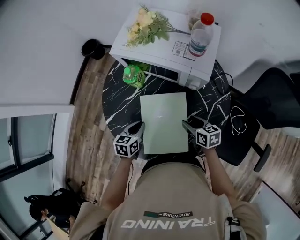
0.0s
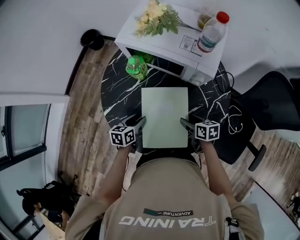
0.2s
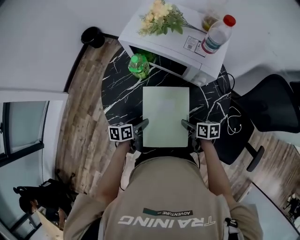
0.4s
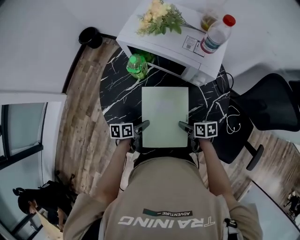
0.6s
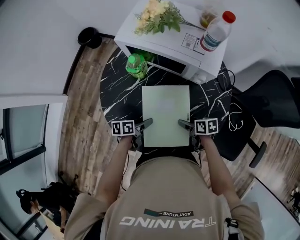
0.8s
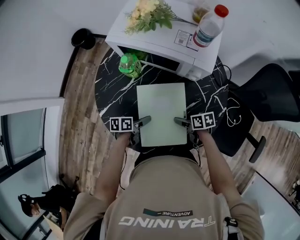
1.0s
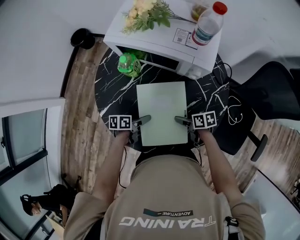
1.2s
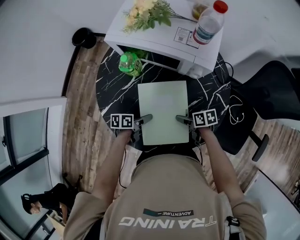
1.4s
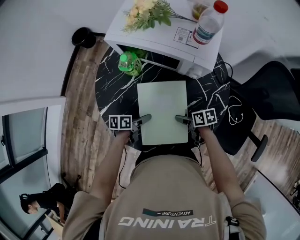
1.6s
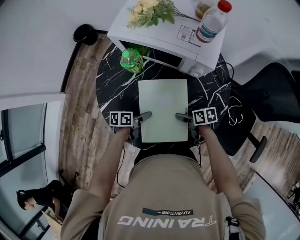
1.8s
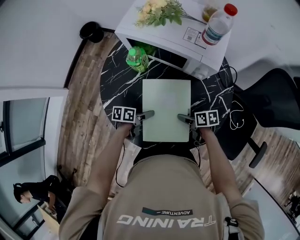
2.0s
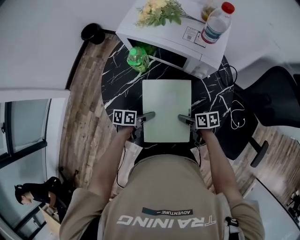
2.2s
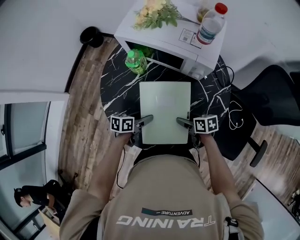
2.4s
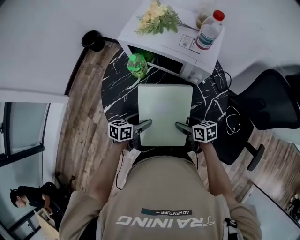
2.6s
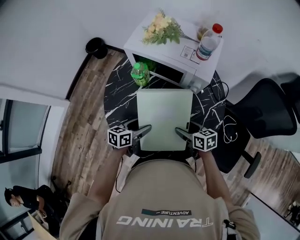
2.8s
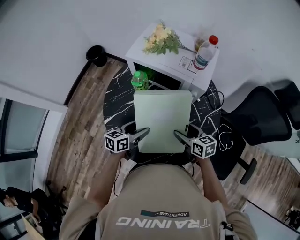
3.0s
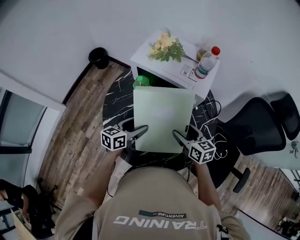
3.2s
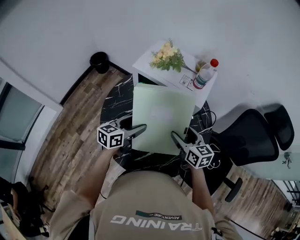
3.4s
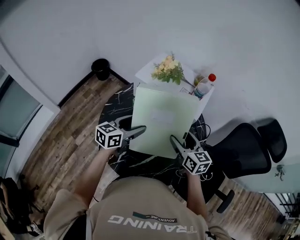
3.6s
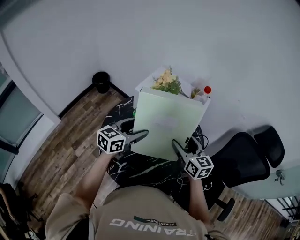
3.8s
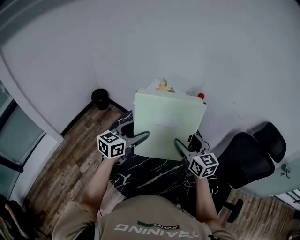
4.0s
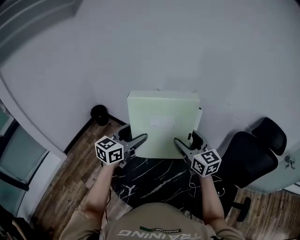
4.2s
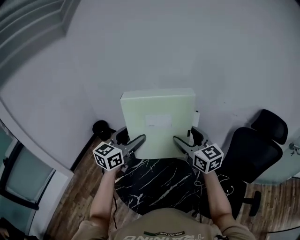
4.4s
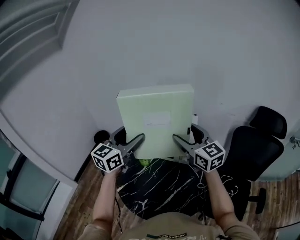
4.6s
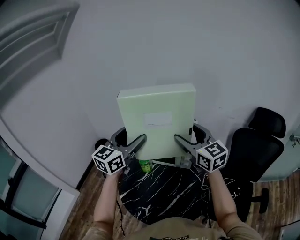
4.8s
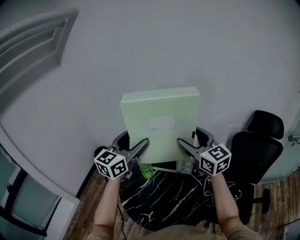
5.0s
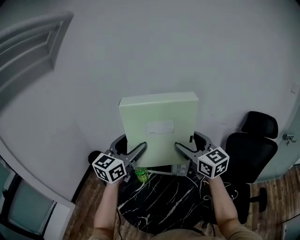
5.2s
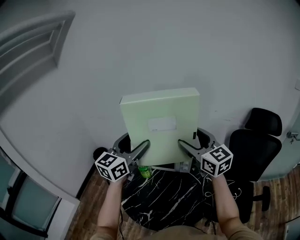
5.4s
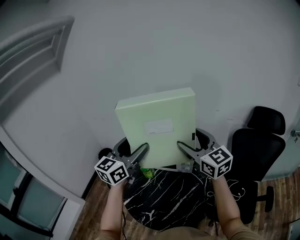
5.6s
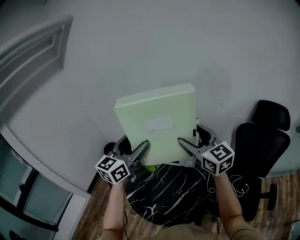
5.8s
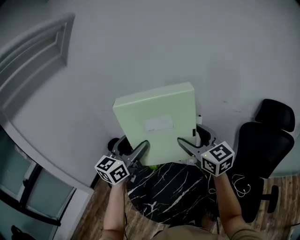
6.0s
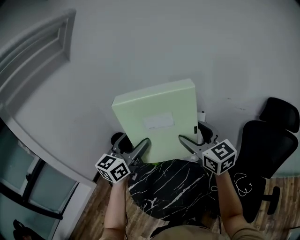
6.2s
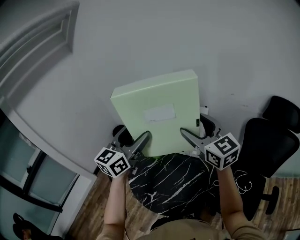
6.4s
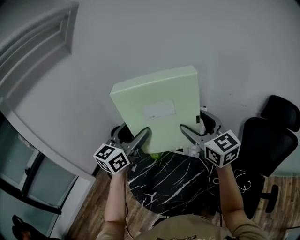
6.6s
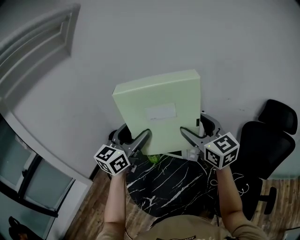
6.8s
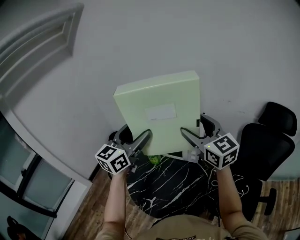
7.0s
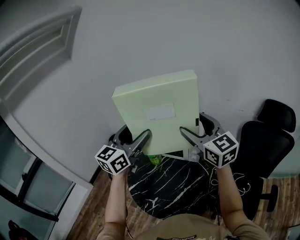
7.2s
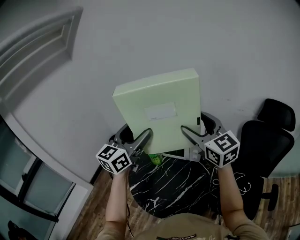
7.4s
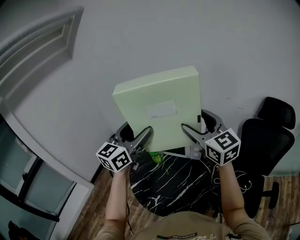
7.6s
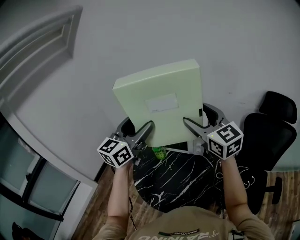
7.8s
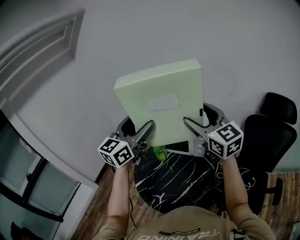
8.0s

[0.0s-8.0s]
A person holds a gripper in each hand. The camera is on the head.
0.0s to 1.6s: The two grippers go roughly 10 cm downward. The right gripper turns by about 30 degrees, and opens; the left gripper changes its angle by about 40 degrees, and opens up.
1.6s to 3.2s: Both grippers travel together upward, approximately 20 cm. The left gripper rotates about 40 degrees. The right gripper changes its angle by roughly 50 degrees.
3.2s to 4.8s: Both grippers travel together upward, about 35 cm. The left gripper changes its angle by some 40 degrees; the right gripper turns by about 40 degrees.
4.8s to 6.4s: The grippers move only a little.
6.4s to 8.0s: The grippers stay close to where they were, moving slightly.

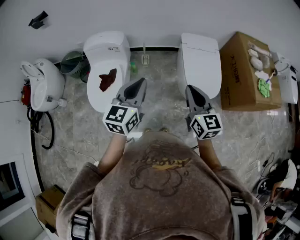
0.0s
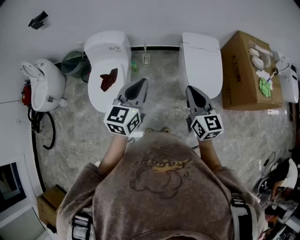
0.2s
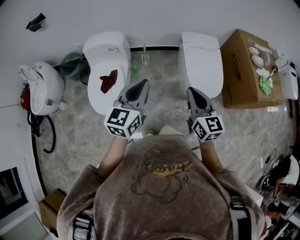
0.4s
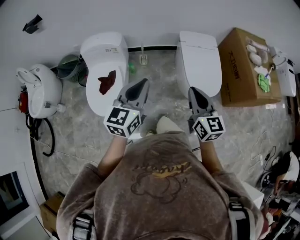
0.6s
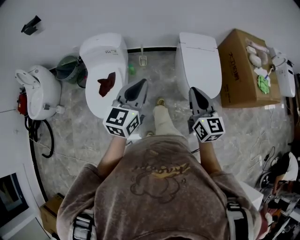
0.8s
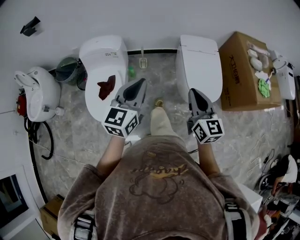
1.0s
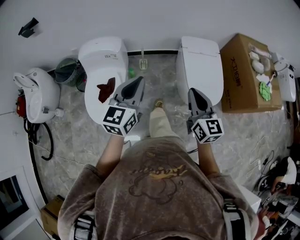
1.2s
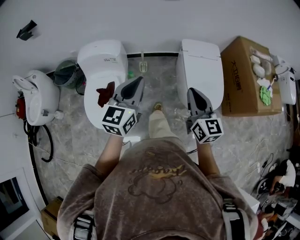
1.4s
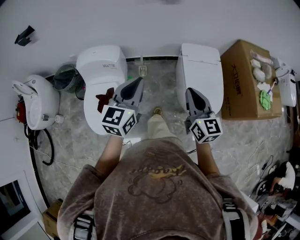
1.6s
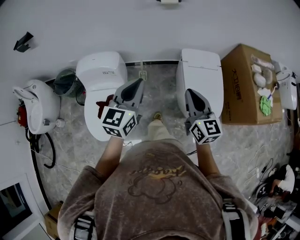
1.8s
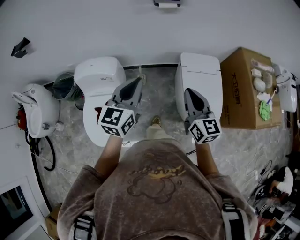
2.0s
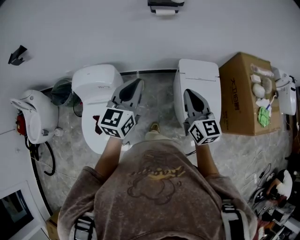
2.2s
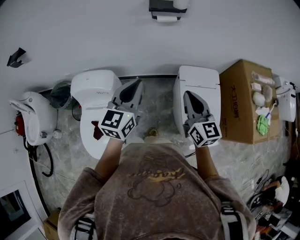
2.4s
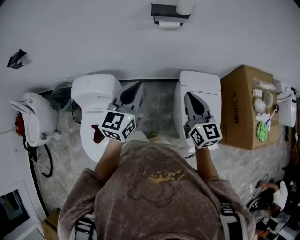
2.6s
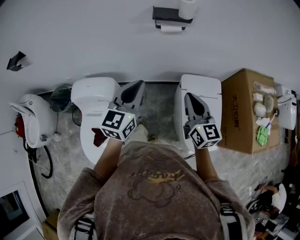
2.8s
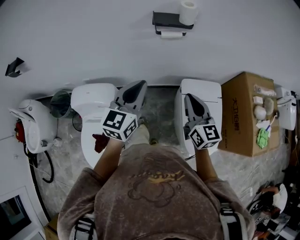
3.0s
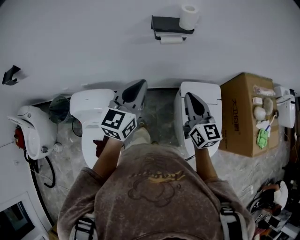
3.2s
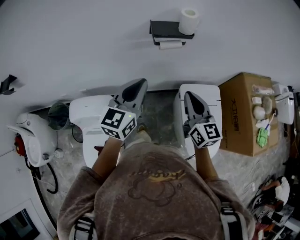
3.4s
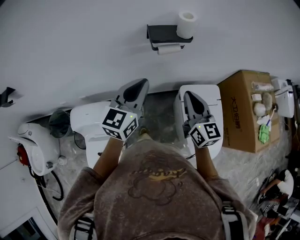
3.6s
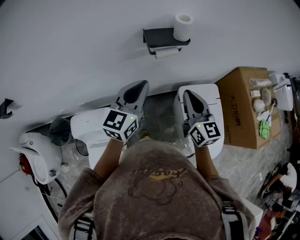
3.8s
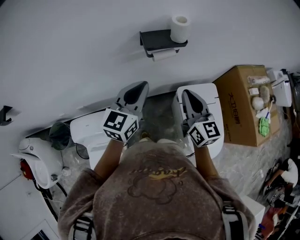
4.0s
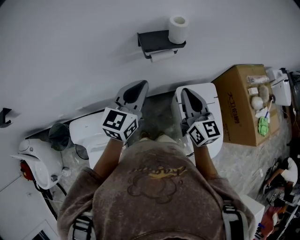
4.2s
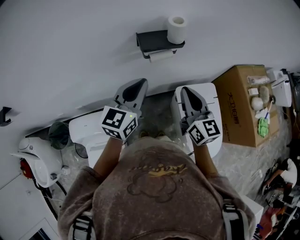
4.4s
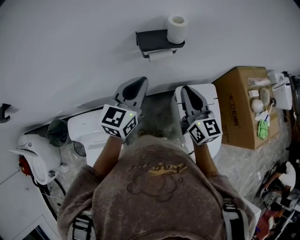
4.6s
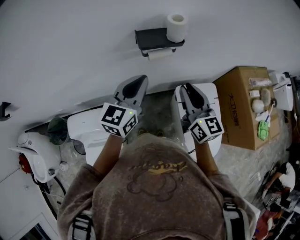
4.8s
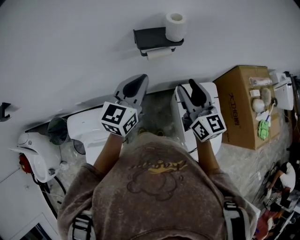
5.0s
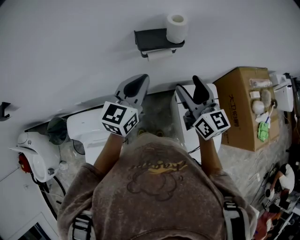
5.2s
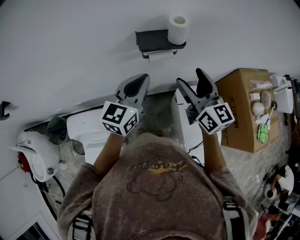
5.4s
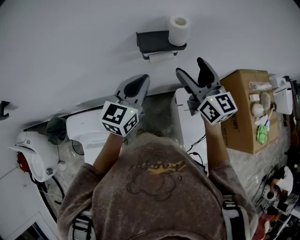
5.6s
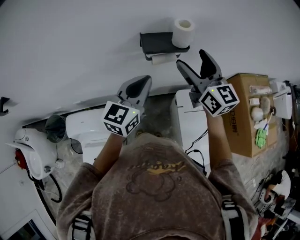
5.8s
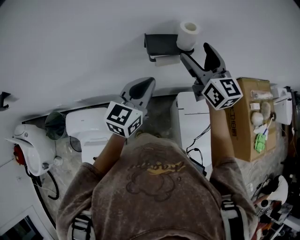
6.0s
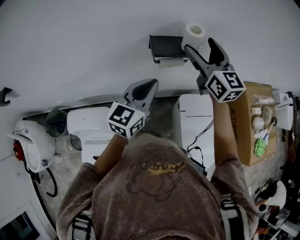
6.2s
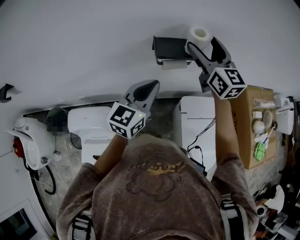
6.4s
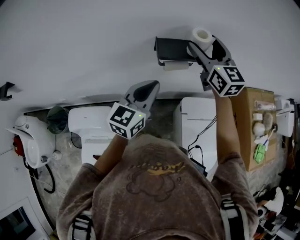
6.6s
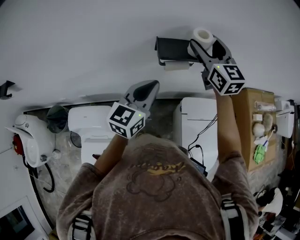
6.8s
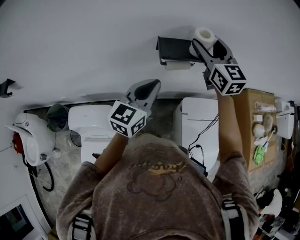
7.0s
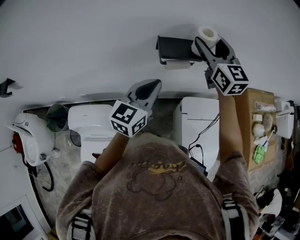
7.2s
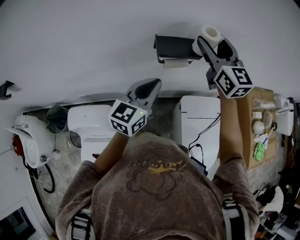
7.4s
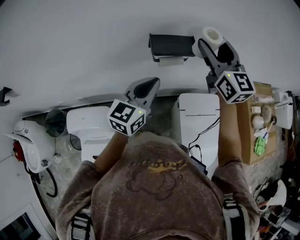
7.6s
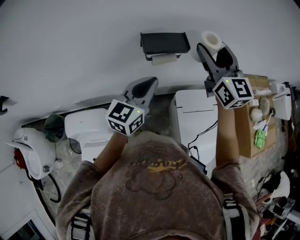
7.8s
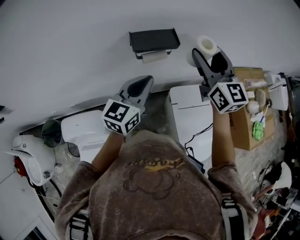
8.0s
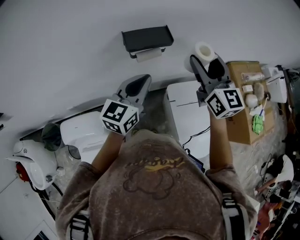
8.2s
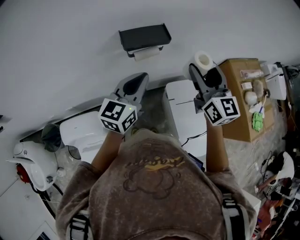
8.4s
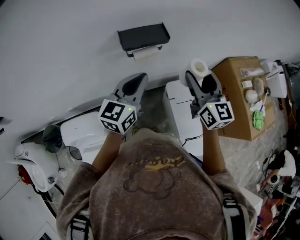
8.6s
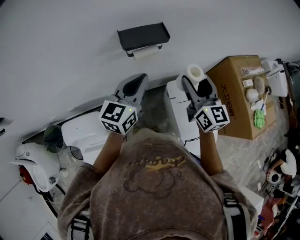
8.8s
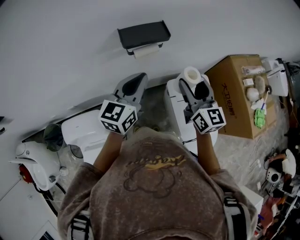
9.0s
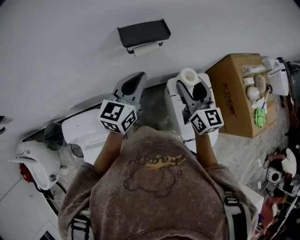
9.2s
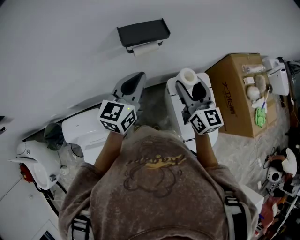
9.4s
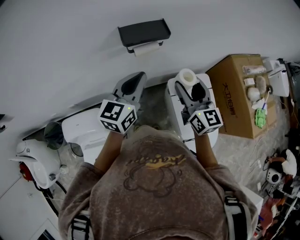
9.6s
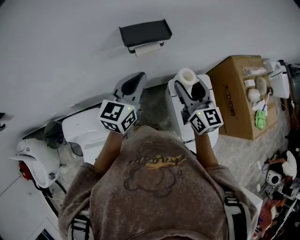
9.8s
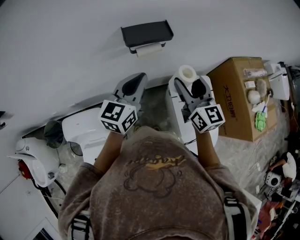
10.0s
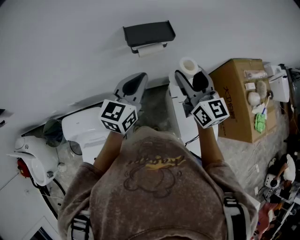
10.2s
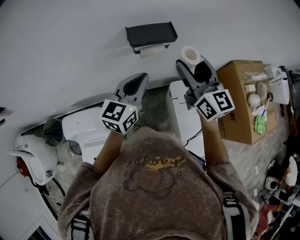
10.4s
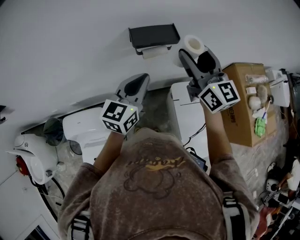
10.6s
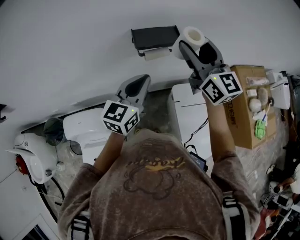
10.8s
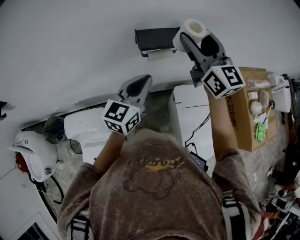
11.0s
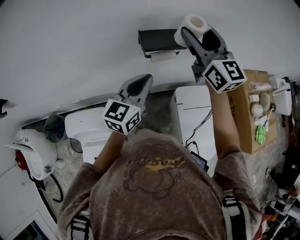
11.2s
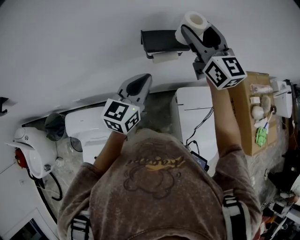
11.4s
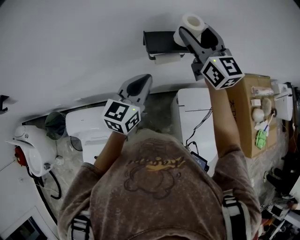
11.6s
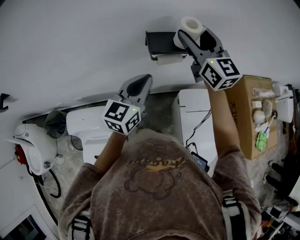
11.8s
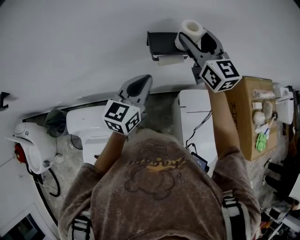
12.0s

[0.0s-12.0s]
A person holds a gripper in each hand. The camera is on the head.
0.0s to 1.6s: Both grippers travel together forward, some 15 cm.
1.6s to 3.0s: The grippers both shift forward by approximately 30 cm.
3.0s to 4.4s: Both grippers move forward, approximately 15 cm.
4.4s to 6.0s: The right gripper shifts about 15 cm forward and upward, and opens up.
6.0s to 7.6s: The right gripper shifts by some 5 cm.
7.6s to 9.0s: The right gripper shifts some 20 cm downward, backward and to the right, and swivels about 20 degrees.
9.0s to 10.4s: The right gripper travels upward and to the left by roughly 10 cm.
10.4s to 12.0s: The left gripper shifts by approximately 5 cm, while the right gripper moves forward and to the left, about 15 cm.

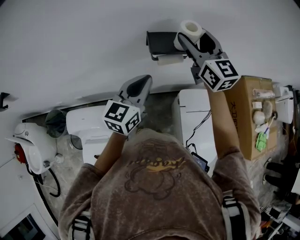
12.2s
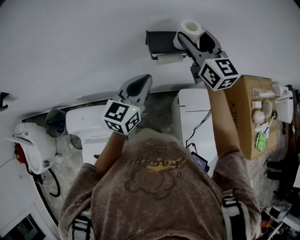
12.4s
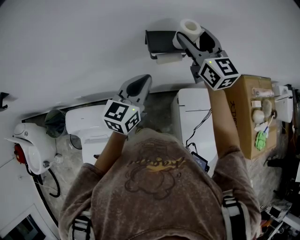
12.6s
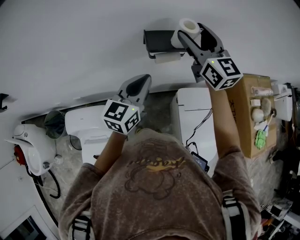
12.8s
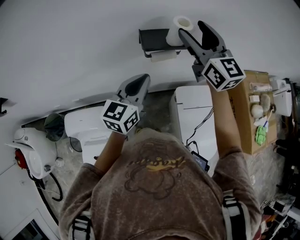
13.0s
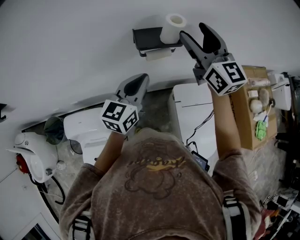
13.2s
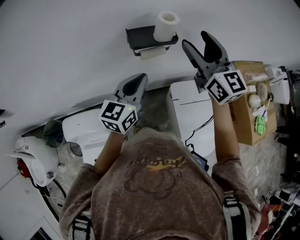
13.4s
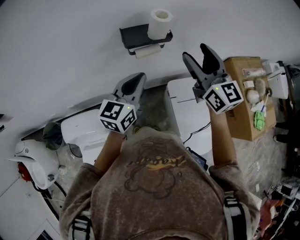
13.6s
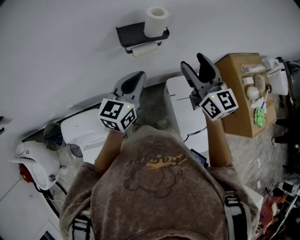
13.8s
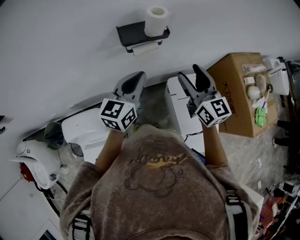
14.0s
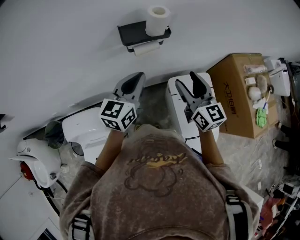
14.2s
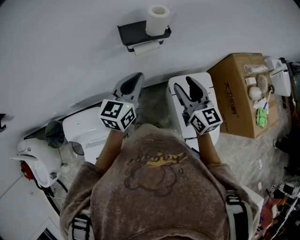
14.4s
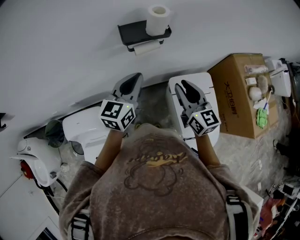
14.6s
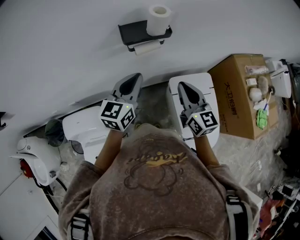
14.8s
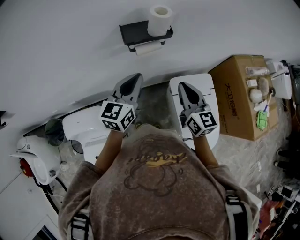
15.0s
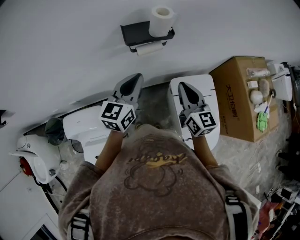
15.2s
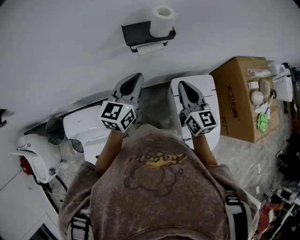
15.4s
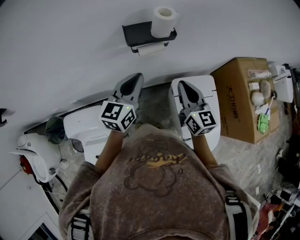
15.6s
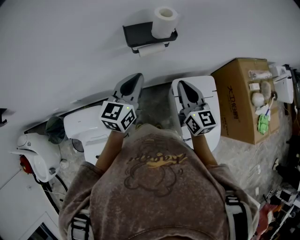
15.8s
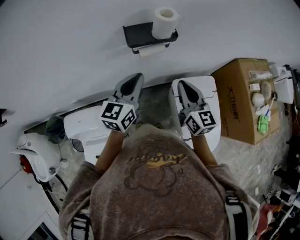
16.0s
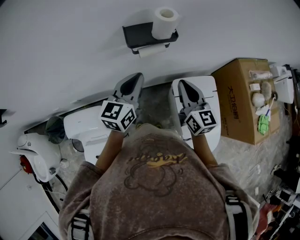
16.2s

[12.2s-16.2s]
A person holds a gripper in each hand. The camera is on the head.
12.2s to 13.6s: The right gripper goes some 15 cm backward and to the right, while the left gripper changes place by approximately 5 cm.
13.6s to 14.8s: The right gripper travels downward and backward by some 15 cm, and closes up.
14.8s to 16.2s: The grippers move only a little.
